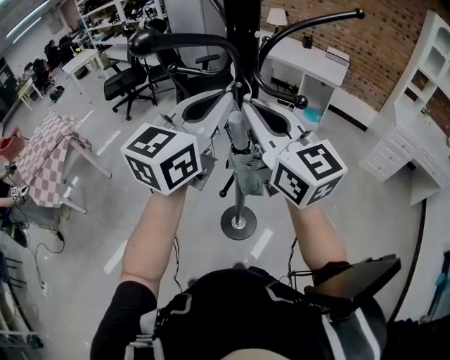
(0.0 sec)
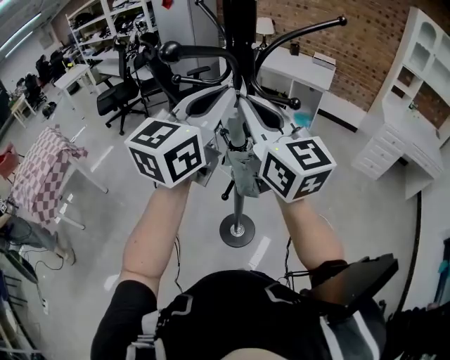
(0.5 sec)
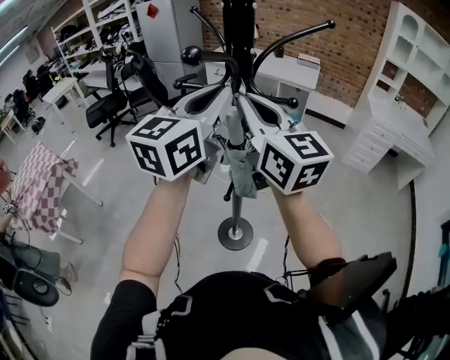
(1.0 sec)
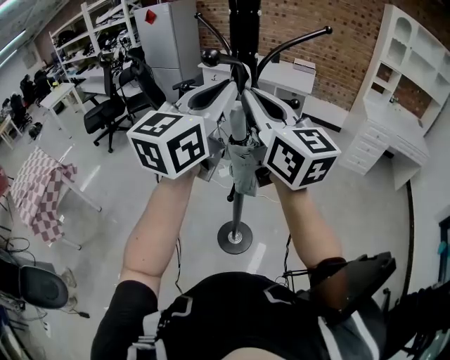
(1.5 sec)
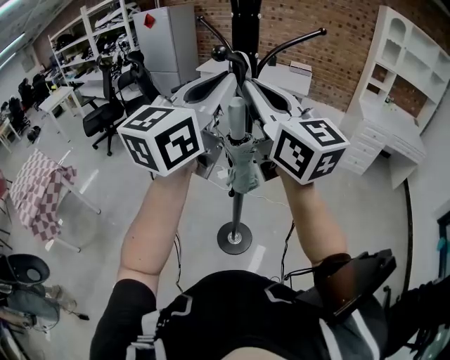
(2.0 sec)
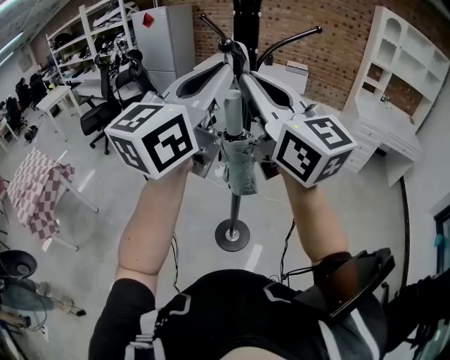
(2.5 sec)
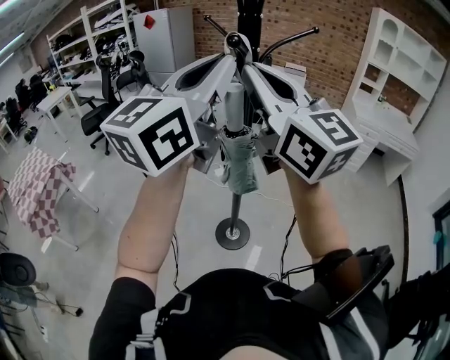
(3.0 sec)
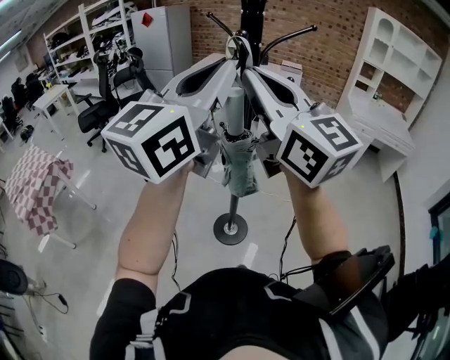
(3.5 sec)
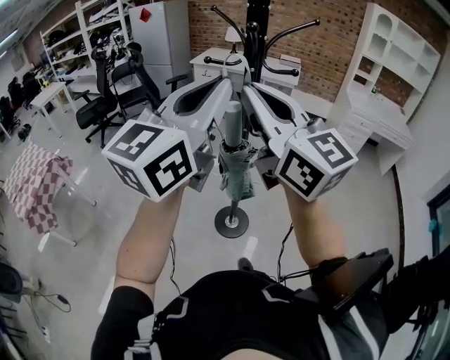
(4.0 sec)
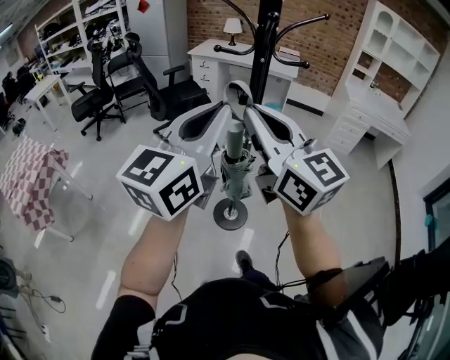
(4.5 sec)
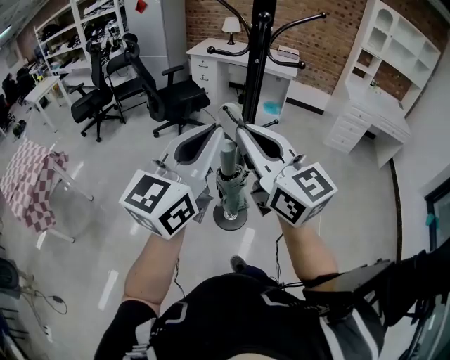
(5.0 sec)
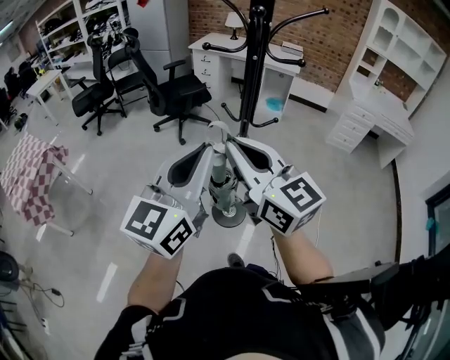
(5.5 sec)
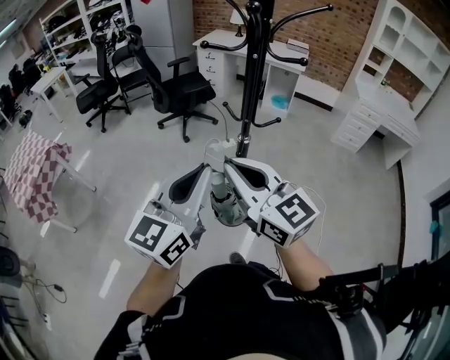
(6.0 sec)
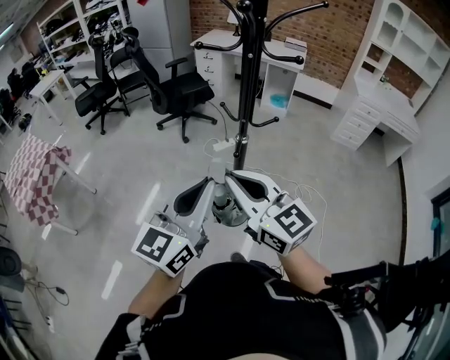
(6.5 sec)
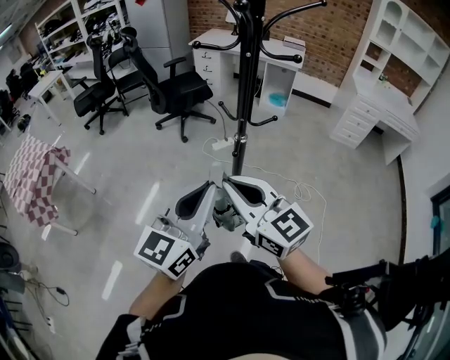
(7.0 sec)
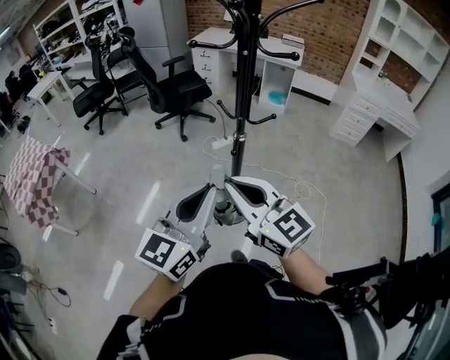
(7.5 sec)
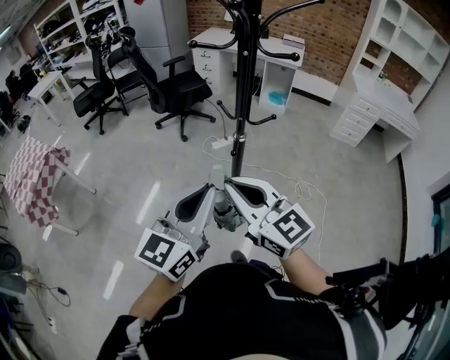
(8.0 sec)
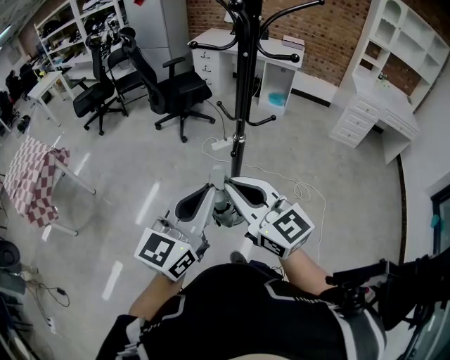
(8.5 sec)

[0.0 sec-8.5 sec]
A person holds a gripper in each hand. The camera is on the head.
0.0 sec to 2.0 sec: Both grippers travel together upward and backward, some 15 cm.
2.0 sec to 4.0 sec: The grippers both shift backward by roughly 15 cm.
4.0 sec to 6.5 sec: The grippers both shift downward by about 20 cm.
6.5 sec to 8.5 sec: There are only small adjustments of the grippers.

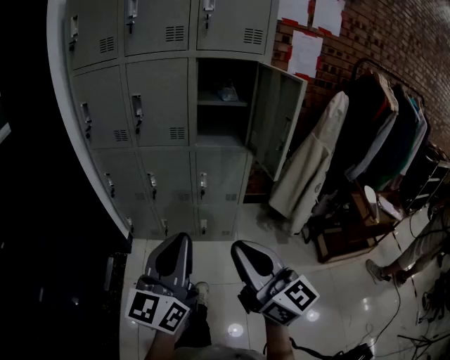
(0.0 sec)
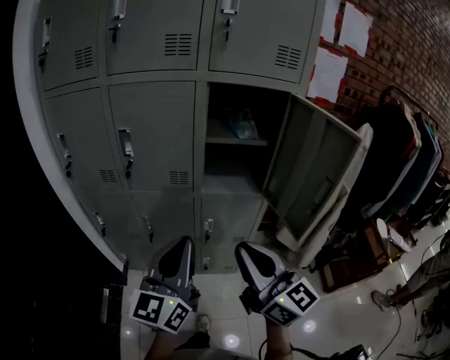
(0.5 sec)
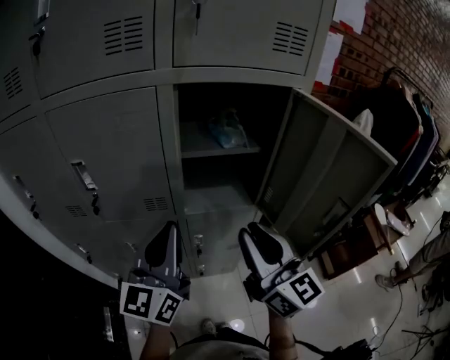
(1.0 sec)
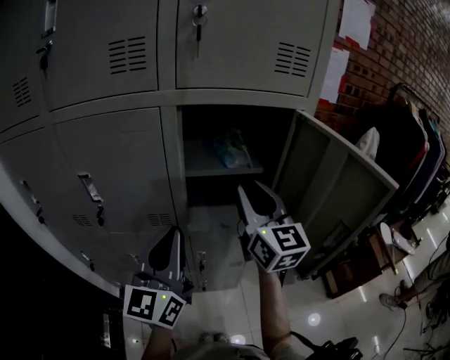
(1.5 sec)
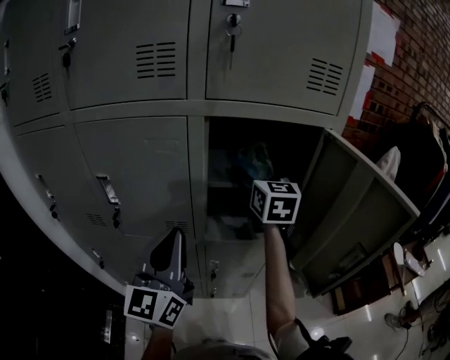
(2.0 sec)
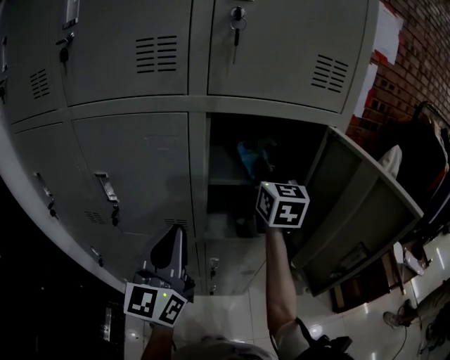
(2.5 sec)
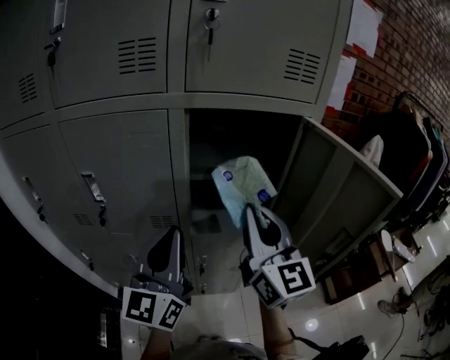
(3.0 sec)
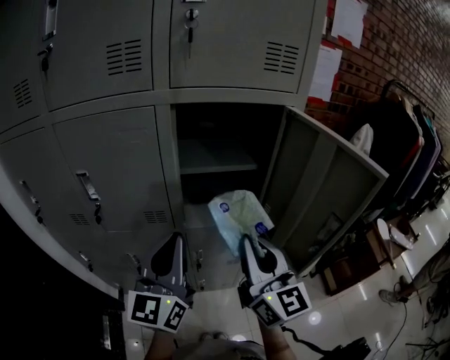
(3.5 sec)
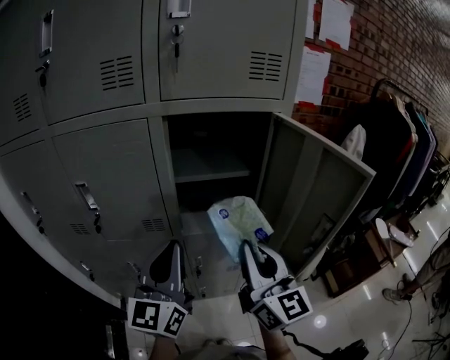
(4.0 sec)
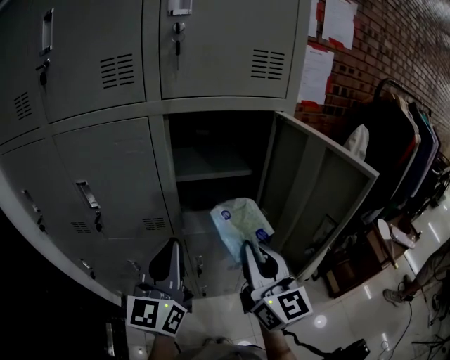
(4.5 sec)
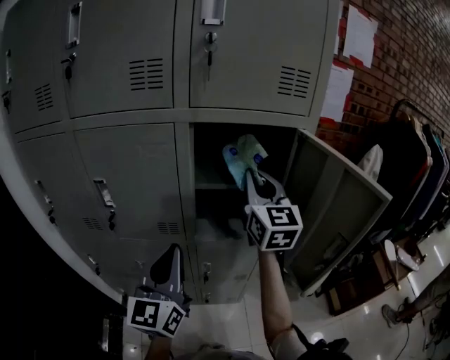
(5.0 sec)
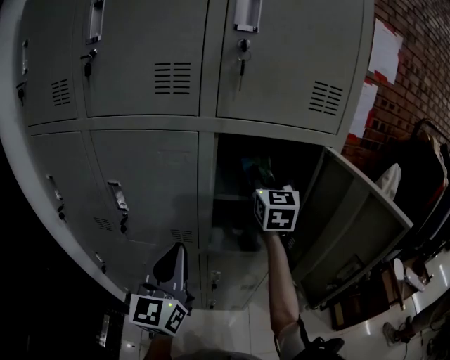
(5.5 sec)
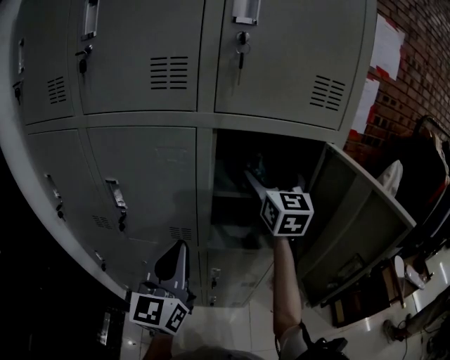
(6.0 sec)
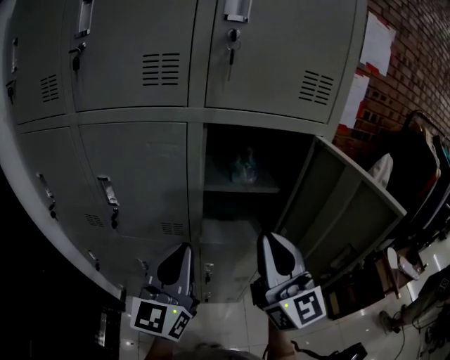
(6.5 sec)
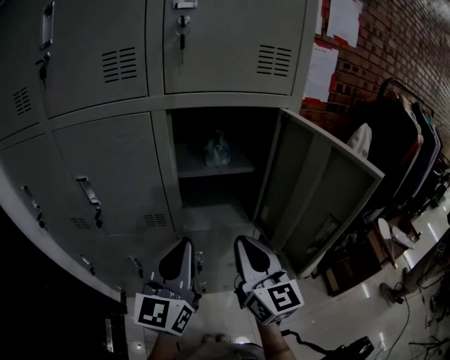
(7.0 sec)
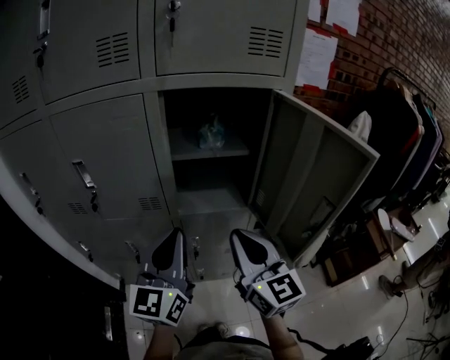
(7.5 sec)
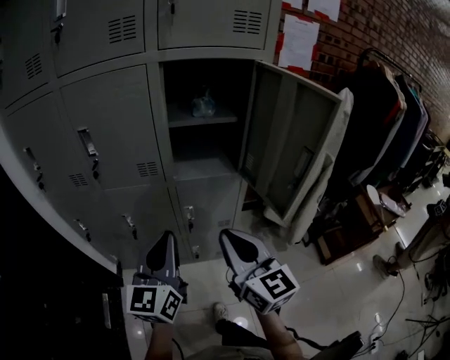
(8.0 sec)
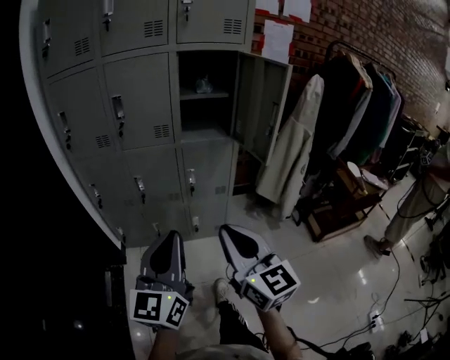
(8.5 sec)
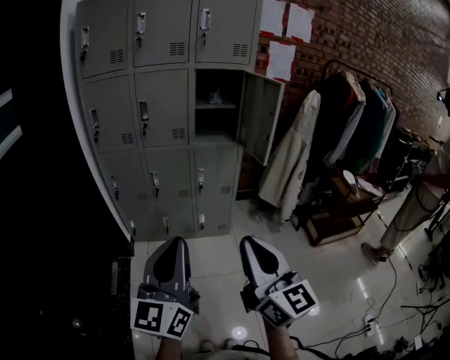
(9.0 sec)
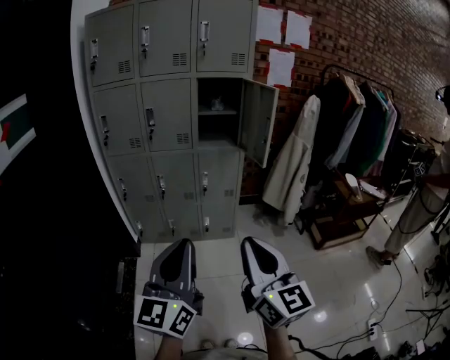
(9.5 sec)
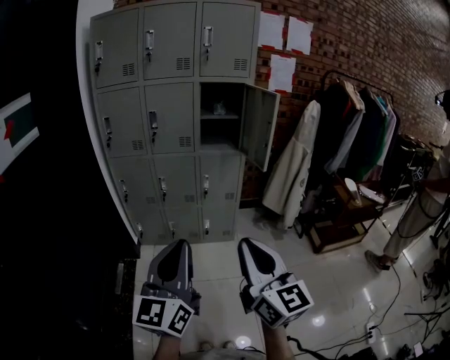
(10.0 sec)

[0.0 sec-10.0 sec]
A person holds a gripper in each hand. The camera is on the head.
0.0 sec to 2.0 sec: Both grippers are carried forward, approximately 60 cm. The right gripper rotates approximately 40 degrees, and opens its fingers.
2.0 sec to 4.0 sec: The left gripper is displaced to the right by roughly 5 cm, while the right gripper heads backward, covering roughly 25 cm, rotates approximately 20 degrees, and closes.
4.0 sec to 6.0 sec: The right gripper shifts about 25 cm forward, and opens, while the left gripper shifts some 5 cm to the left.
6.0 sec to 8.0 sec: The left gripper goes about 20 cm backward and downward; the right gripper travels backward and downward by roughly 40 cm, and closes its fingers.
8.0 sec to 10.0 sec: Both grippers are carried backward, some 50 cm.

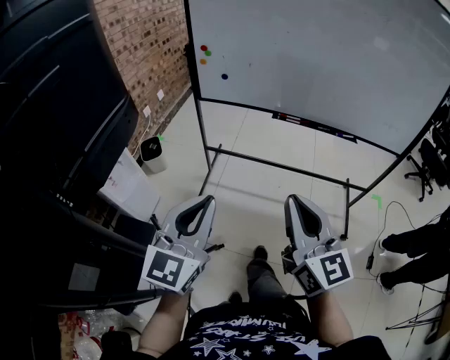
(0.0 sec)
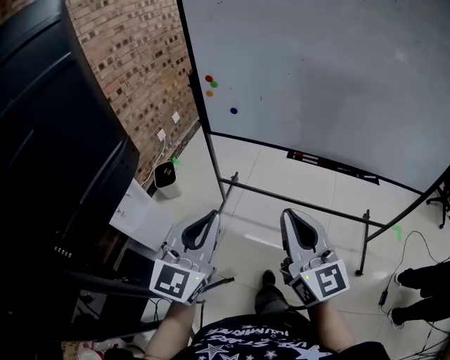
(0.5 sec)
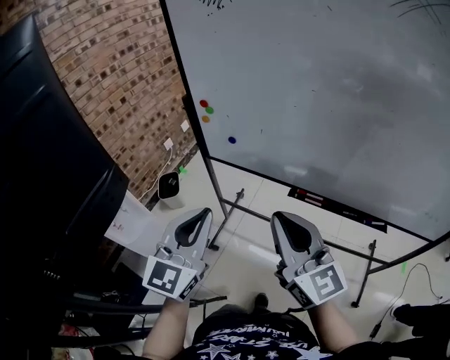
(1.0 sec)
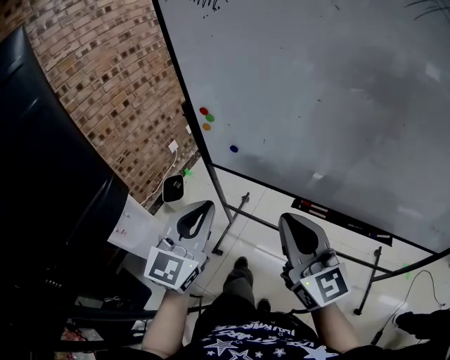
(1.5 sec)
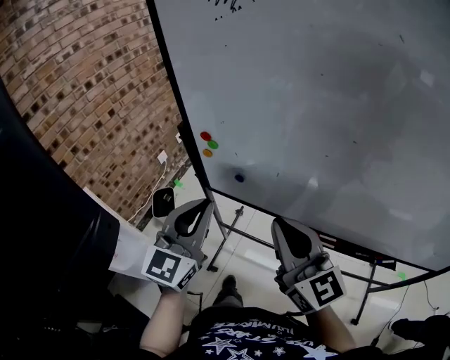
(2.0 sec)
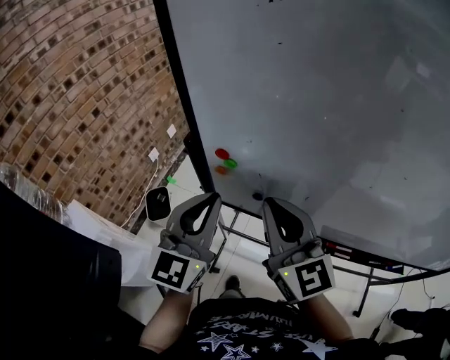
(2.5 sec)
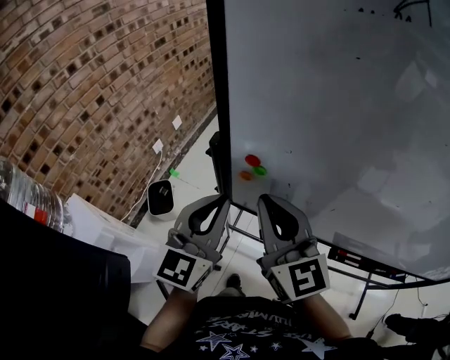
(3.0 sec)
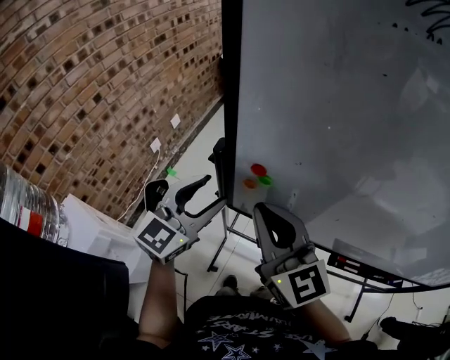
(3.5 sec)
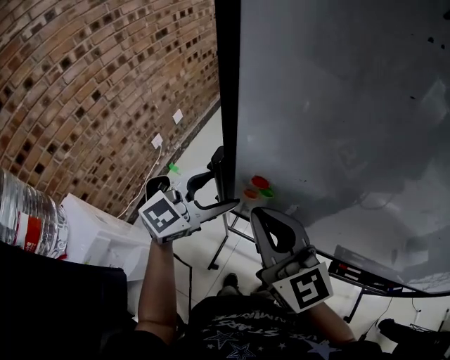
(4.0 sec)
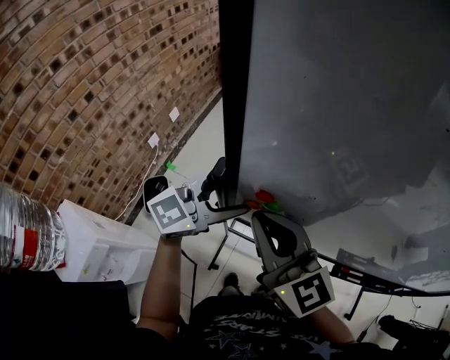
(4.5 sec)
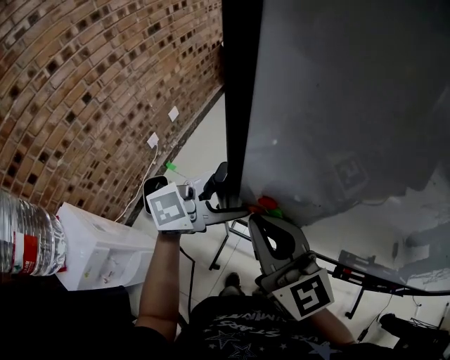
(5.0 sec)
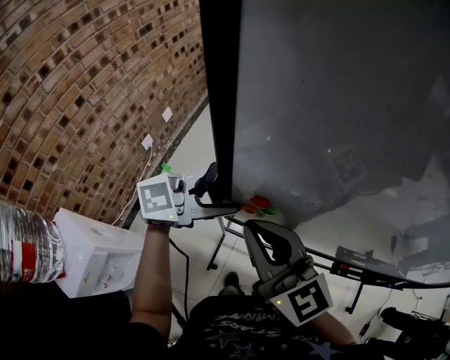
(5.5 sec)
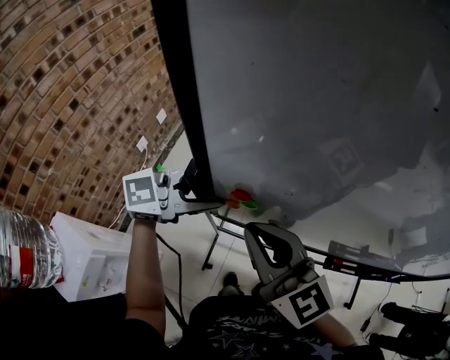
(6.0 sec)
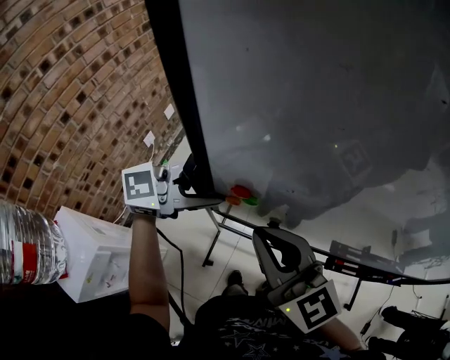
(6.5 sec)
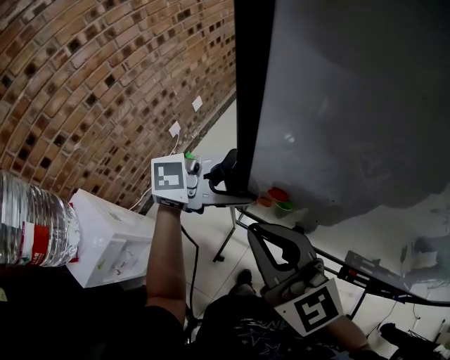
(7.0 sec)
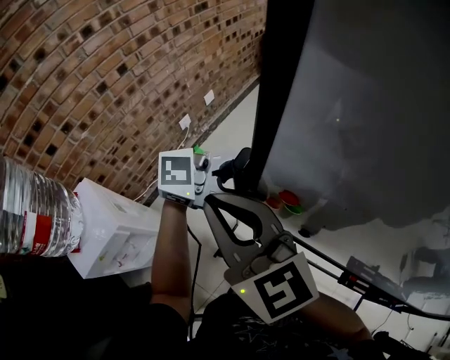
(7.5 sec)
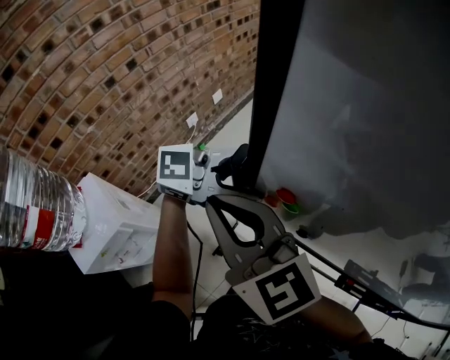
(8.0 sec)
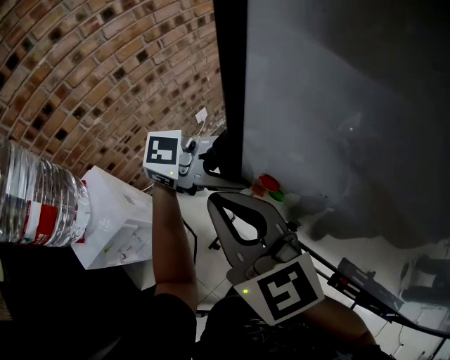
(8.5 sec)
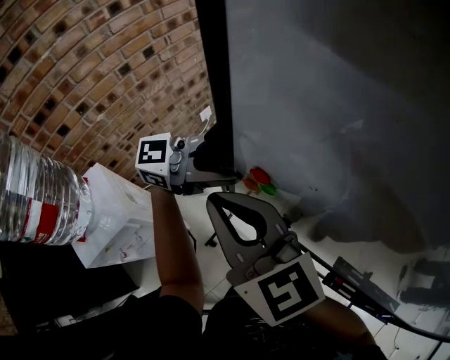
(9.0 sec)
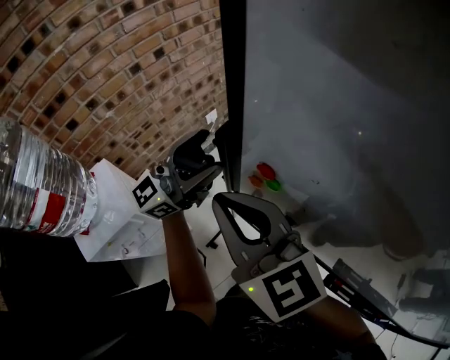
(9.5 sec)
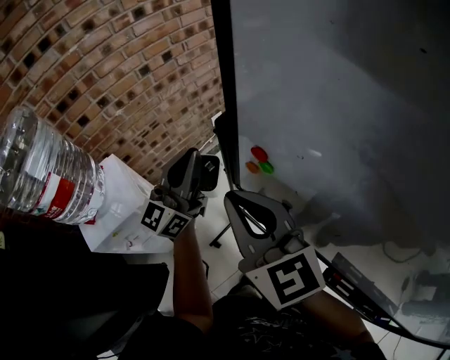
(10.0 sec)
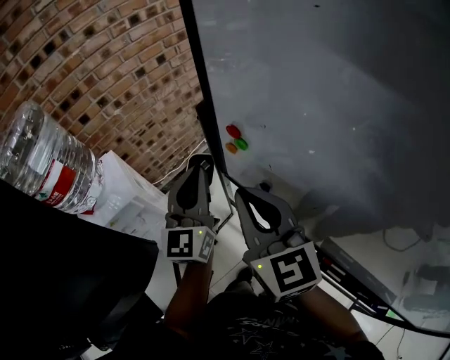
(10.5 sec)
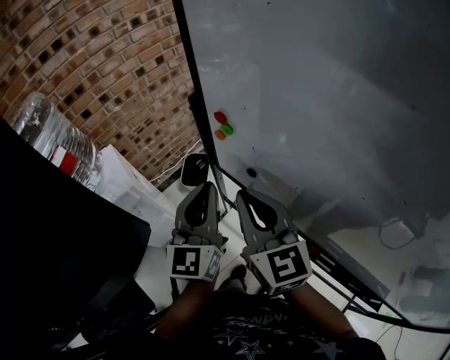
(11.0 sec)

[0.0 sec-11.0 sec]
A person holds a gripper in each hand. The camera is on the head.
0.0 sec to 2.0 sec: Both grippers travel together forward, some 40 cm.
2.0 sec to 3.5 sec: The left gripper goes some 20 cm forward and to the left, and opens. Meanwhile the right gripper is displaced to the left and forward by about 20 cm.
3.5 sec to 5.5 sec: The left gripper changes place by about 5 cm, and changes its angle by approximately 40 degrees.
5.5 sec to 7.5 sec: The left gripper moves some 5 cm. The right gripper ends up some 15 cm from where it was.
7.5 sec to 9.0 sec: The right gripper changes place by approximately 5 cm. Meanwhile the left gripper shifts by about 10 cm.
9.0 sec to 11.0 sec: The left gripper changes place by about 15 cm, changes its angle by approximately 90 degrees, and closes. The right gripper changes place by approximately 15 cm.
